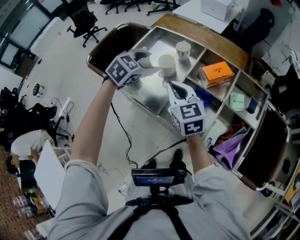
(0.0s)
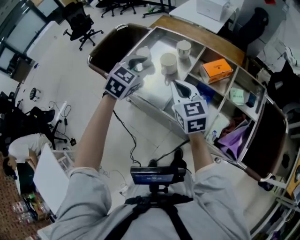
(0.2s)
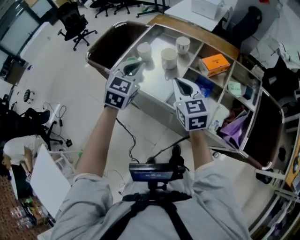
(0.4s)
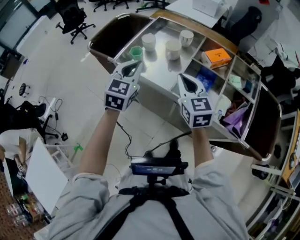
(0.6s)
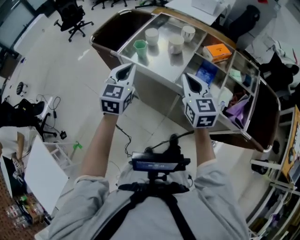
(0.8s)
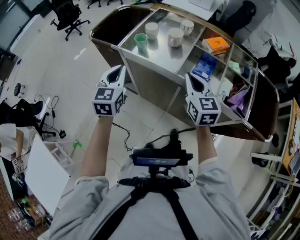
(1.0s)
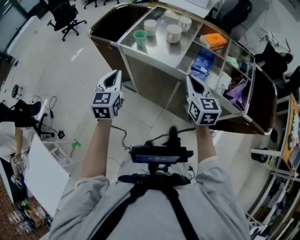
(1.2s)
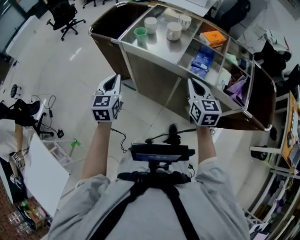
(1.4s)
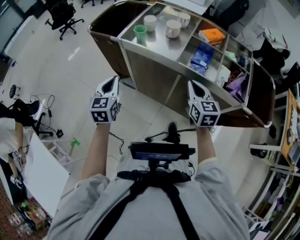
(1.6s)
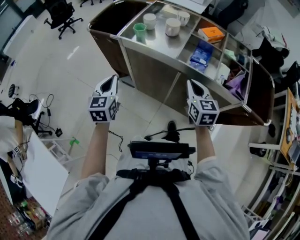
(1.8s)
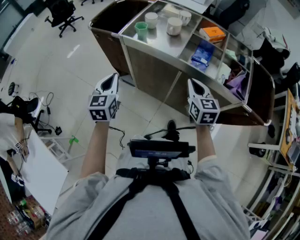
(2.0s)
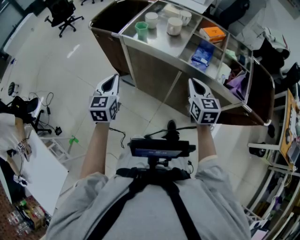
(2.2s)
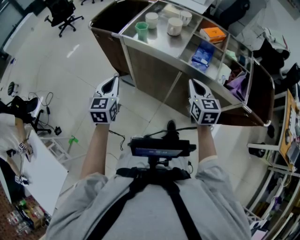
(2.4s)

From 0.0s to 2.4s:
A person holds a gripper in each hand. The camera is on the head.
From 0.0s to 1.2s: The left gripper goes some 35 cm backward and to the left, swivels some 50 degrees, and closes its fingers. The right gripper moves backward, roughly 20 cm.
From 1.2s to 2.4s: The right gripper moves approximately 5 cm. Meanwhile the left gripper travels backward and downward by approximately 10 cm.

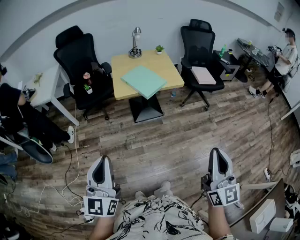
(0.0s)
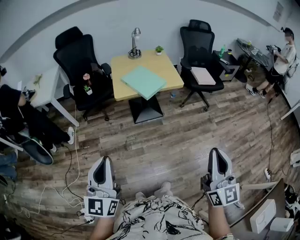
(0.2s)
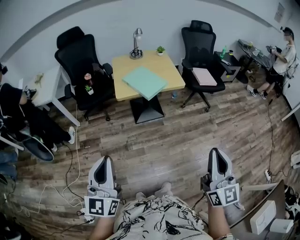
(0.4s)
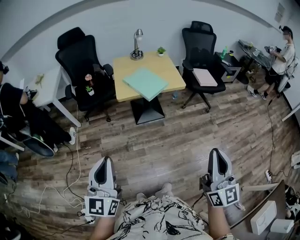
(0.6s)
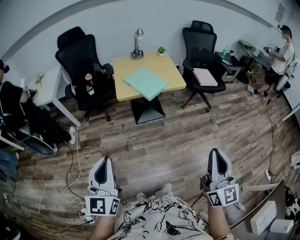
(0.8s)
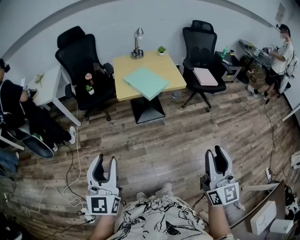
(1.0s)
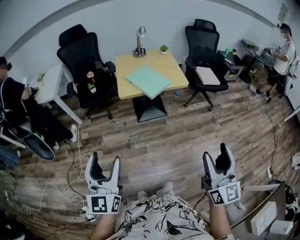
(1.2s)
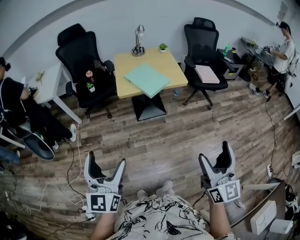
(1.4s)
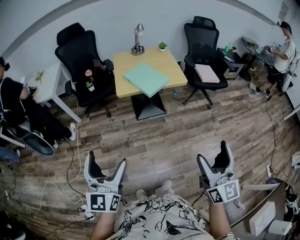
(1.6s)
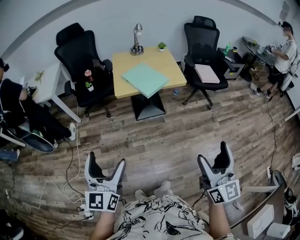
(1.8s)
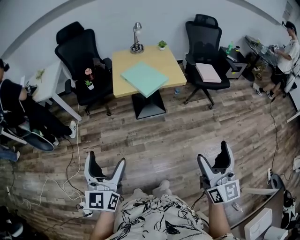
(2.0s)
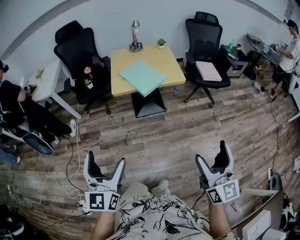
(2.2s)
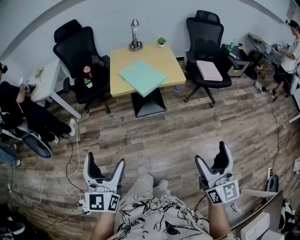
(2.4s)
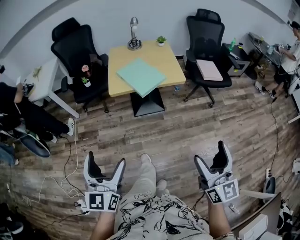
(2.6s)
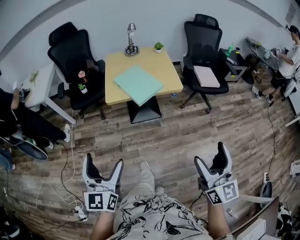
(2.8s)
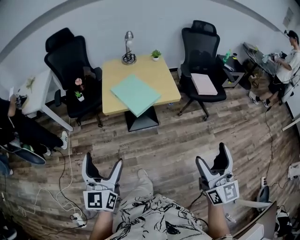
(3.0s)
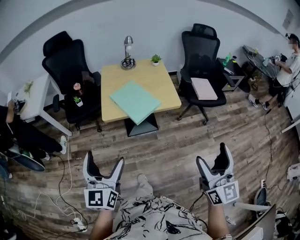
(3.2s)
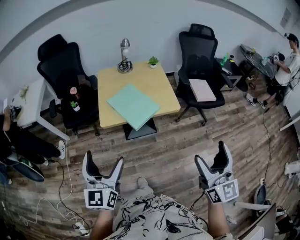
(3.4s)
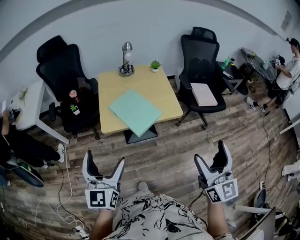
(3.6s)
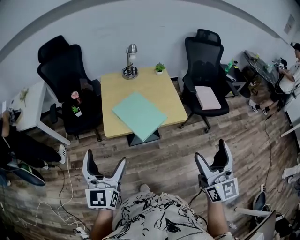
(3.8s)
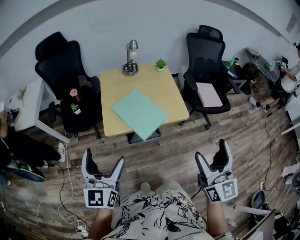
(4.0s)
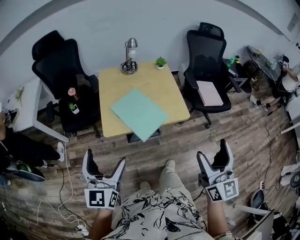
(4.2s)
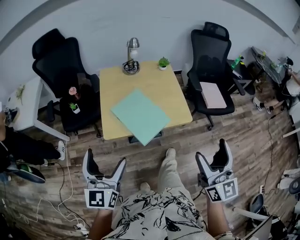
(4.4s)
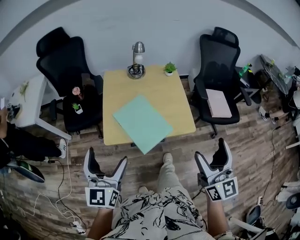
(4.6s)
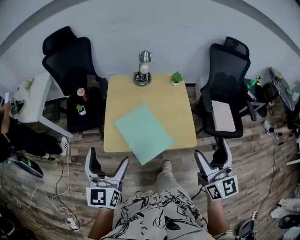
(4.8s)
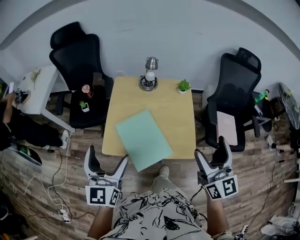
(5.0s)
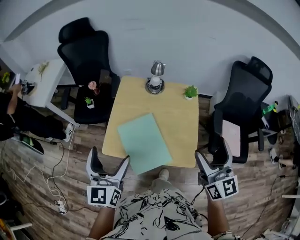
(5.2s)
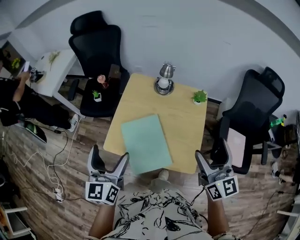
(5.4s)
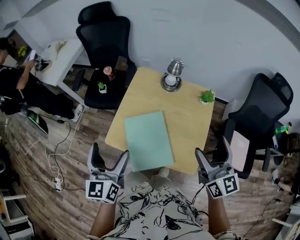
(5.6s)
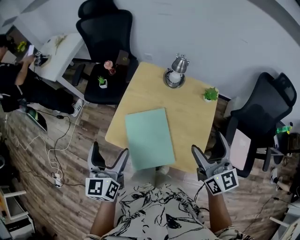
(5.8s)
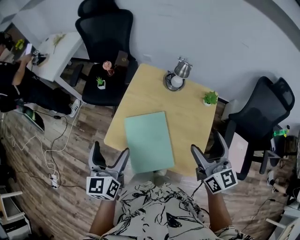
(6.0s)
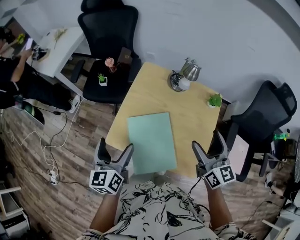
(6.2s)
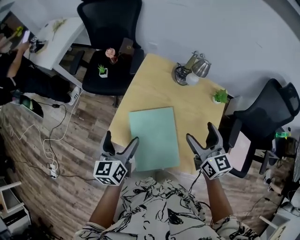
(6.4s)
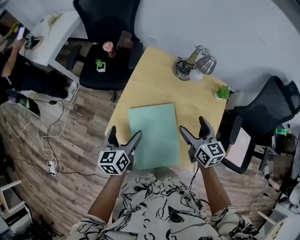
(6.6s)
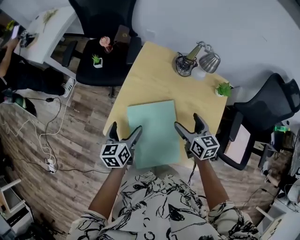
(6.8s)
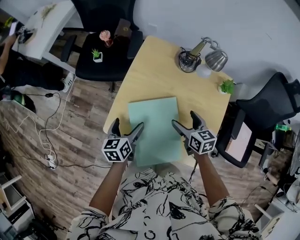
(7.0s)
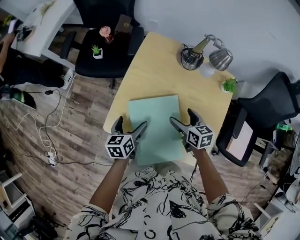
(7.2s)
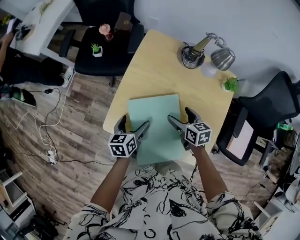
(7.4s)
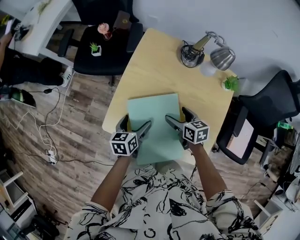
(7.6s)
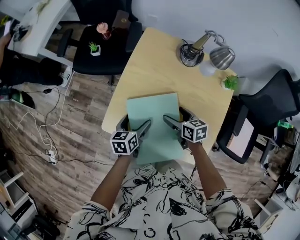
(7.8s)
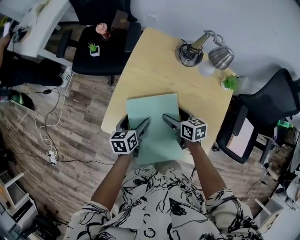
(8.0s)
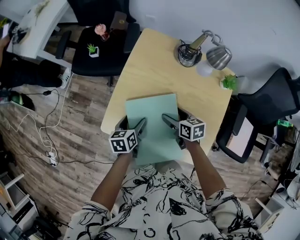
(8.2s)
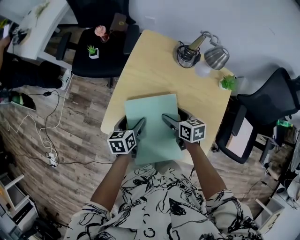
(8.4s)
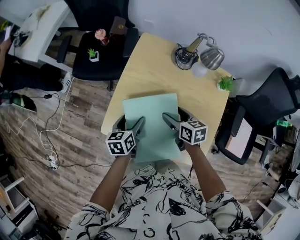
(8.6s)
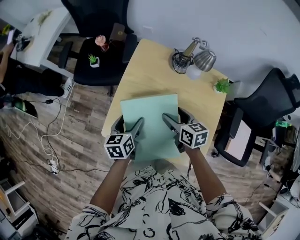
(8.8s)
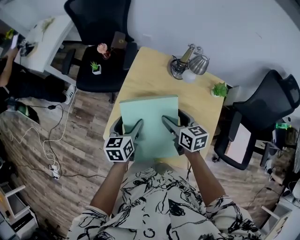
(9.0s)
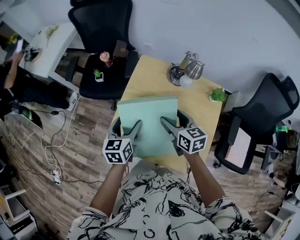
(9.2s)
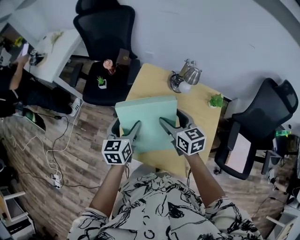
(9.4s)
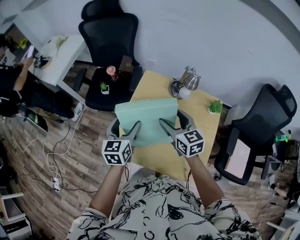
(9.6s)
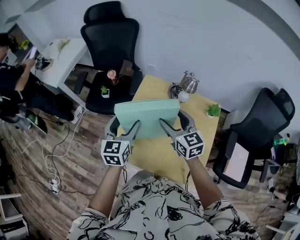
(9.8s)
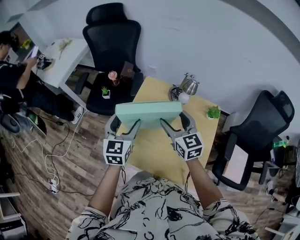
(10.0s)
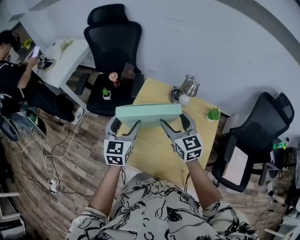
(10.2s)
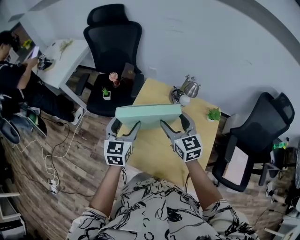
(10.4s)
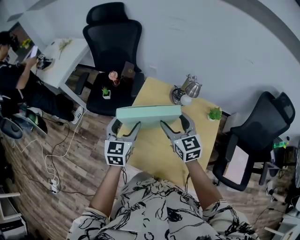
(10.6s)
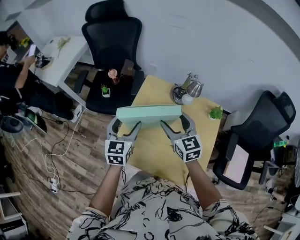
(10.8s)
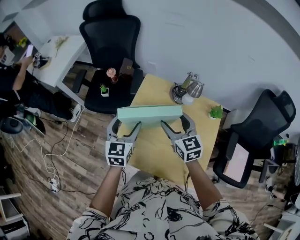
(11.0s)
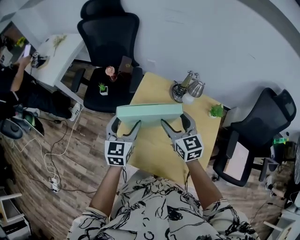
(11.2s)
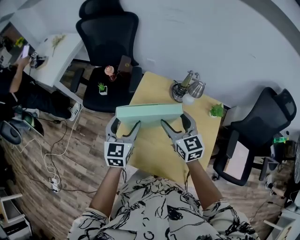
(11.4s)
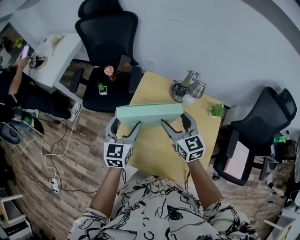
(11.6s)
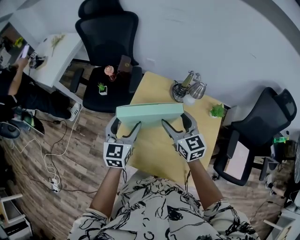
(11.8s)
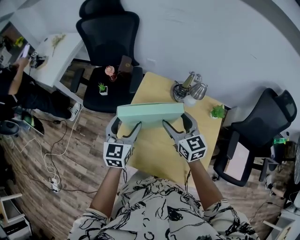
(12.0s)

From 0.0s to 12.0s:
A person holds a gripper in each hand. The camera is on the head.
From 0.0s to 1.6s: The right gripper opens; the left gripper opens its fingers.
From 1.6s to 3.0s: The grippers both shift forward and to the right by about 20 cm.
From 3.0s to 4.4s: The grippers both shift forward by roughly 25 cm.
From 4.4s to 6.0s: The right gripper ends up approximately 40 cm from where it was, and changes its angle by about 40 degrees. The left gripper moves roughly 20 cm, and swivels roughly 40 degrees.
From 6.0s to 7.6s: Both grippers move downward, approximately 30 cm. The right gripper points its fingers approximately 40 degrees further downward, while the left gripper rotates approximately 40 degrees.
From 7.6s to 9.0s: The two grippers go roughly 10 cm upward.
From 9.0s to 10.4s: The grippers both shift upward by approximately 15 cm. The left gripper swivels about 30 degrees, while the right gripper rotates roughly 30 degrees.
From 10.4s to 12.0s: There are only small adjustments of the grippers.

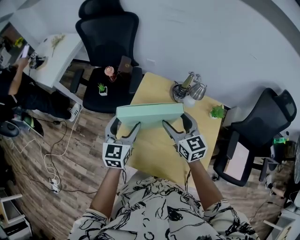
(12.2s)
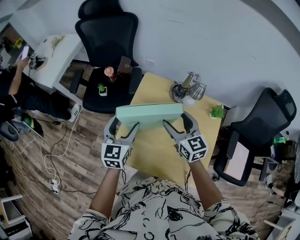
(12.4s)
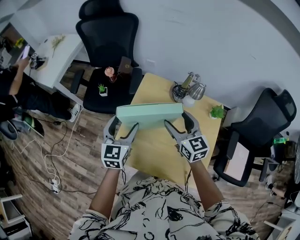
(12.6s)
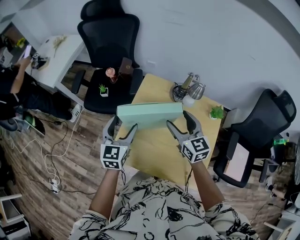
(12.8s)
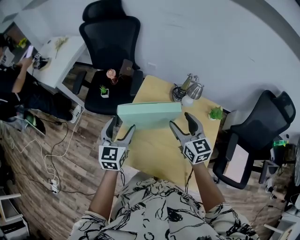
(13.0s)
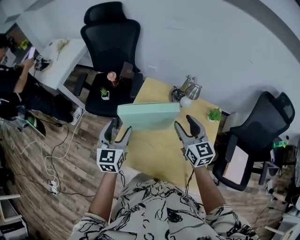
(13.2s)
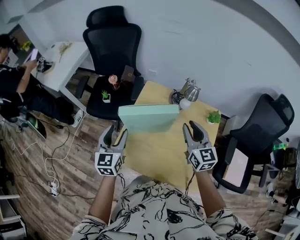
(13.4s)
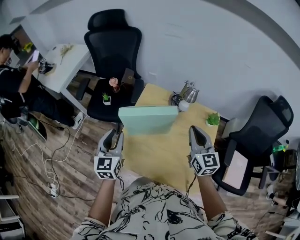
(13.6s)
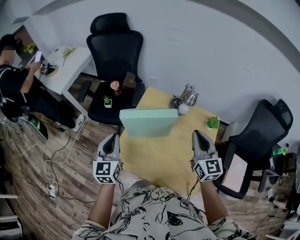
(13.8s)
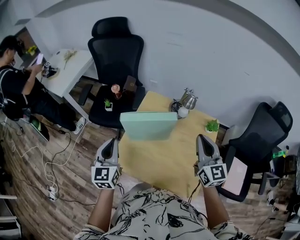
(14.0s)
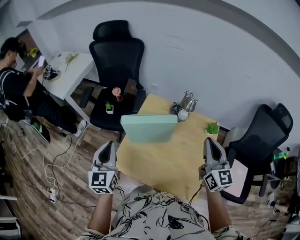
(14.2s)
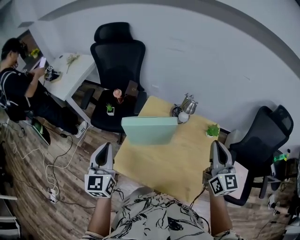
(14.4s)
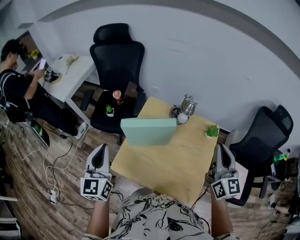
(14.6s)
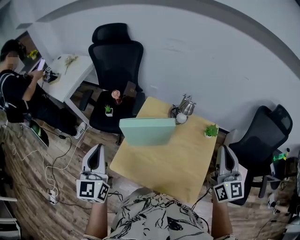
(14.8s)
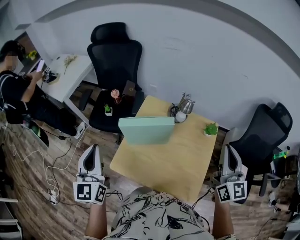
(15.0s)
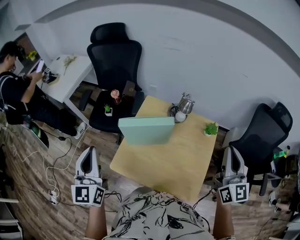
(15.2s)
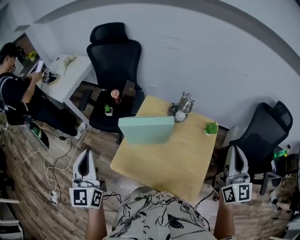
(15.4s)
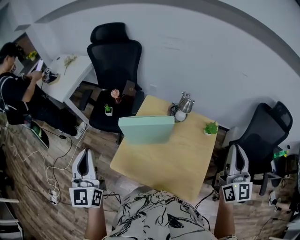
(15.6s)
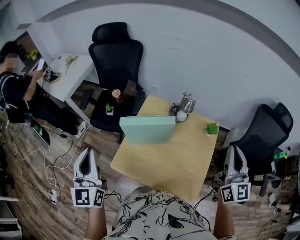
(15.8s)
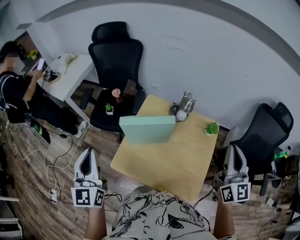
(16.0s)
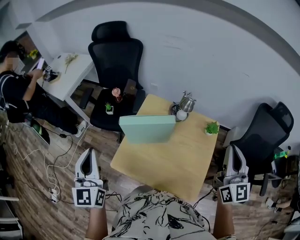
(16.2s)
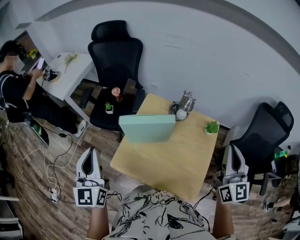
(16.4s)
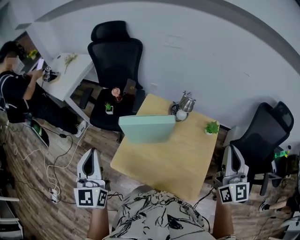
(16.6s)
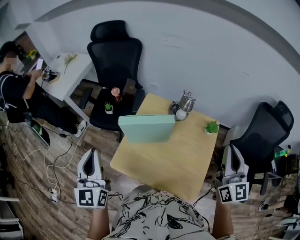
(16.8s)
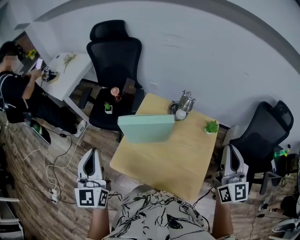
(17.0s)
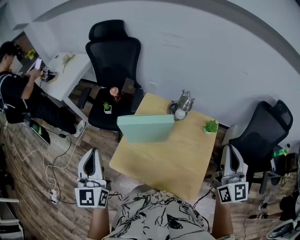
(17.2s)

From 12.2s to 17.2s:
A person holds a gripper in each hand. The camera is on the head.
From 12.2s to 13.8s: The right gripper shifts roughly 15 cm to the right, backward and upward, and closes up; the left gripper moves backward and to the left, approximately 10 cm, and closes up.
From 13.8s to 15.6s: The right gripper goes some 20 cm upward, to the right and backward. Meanwhile the left gripper goes some 15 cm upward and backward.
From 15.6s to 17.2s: The grippers move only a little.

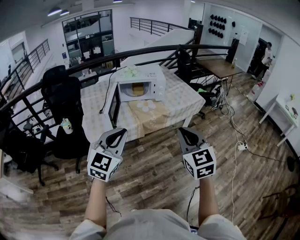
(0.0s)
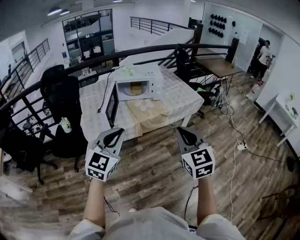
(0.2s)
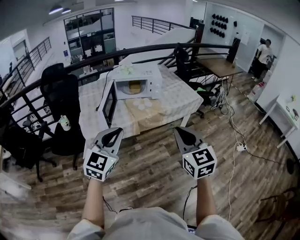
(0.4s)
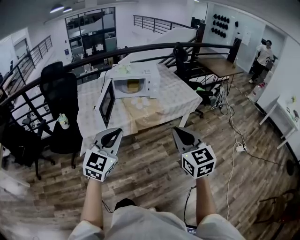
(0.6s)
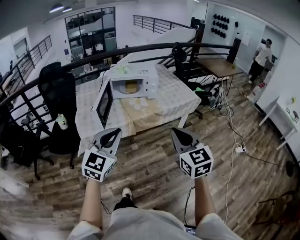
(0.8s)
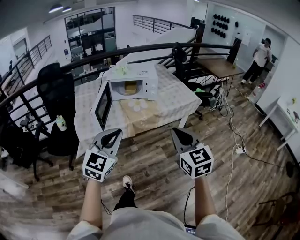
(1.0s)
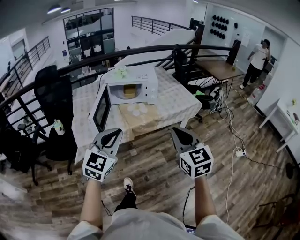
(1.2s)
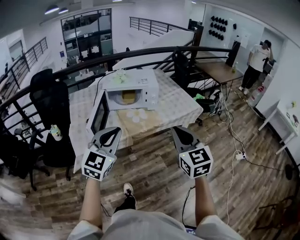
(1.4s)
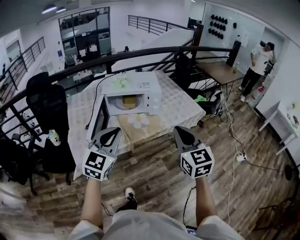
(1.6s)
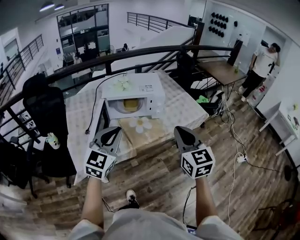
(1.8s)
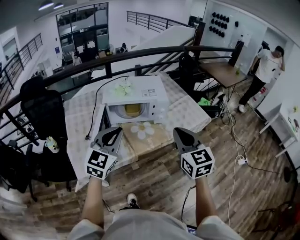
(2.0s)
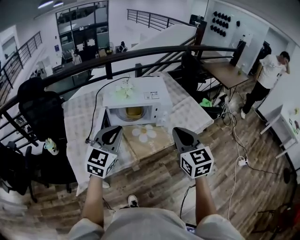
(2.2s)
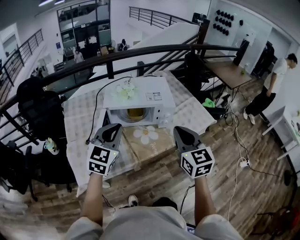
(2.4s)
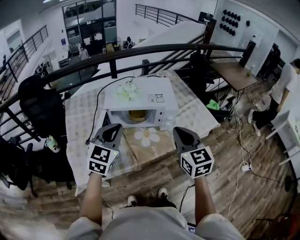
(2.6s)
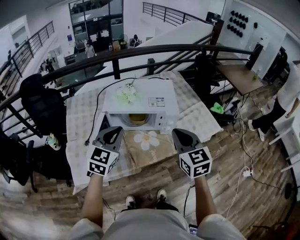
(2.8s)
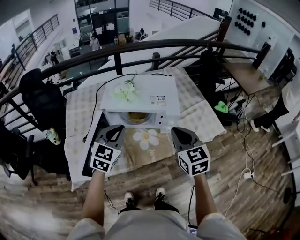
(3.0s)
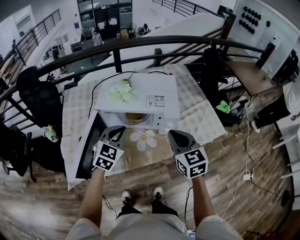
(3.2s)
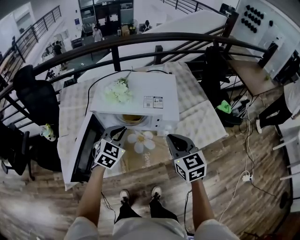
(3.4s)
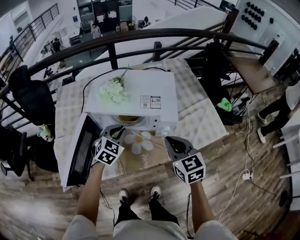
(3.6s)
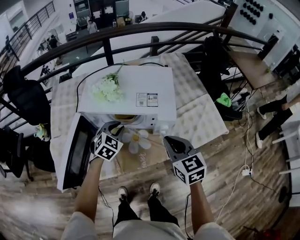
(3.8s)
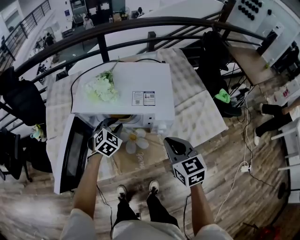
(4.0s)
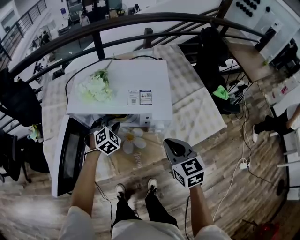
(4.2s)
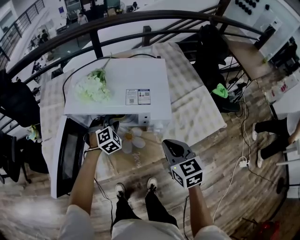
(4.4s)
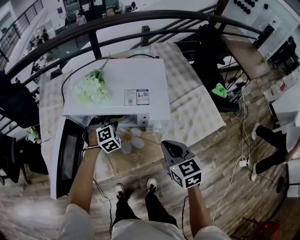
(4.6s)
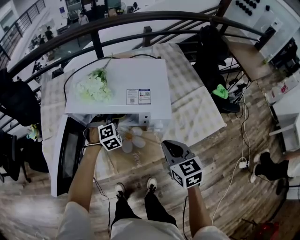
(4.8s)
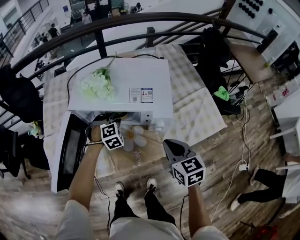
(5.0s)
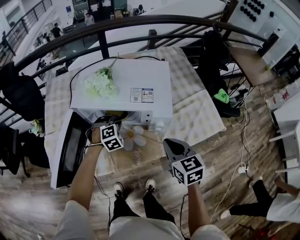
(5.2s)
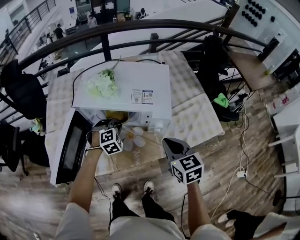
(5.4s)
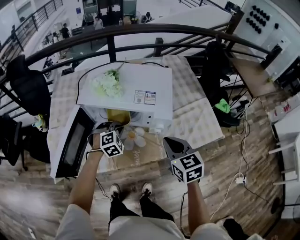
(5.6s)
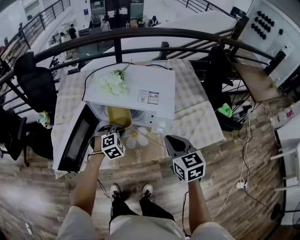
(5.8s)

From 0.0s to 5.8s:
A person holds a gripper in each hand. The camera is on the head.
From 0.0s to 1.4s: The grippers both shift forward by roughly 15 cm.
From 1.4s to 2.8s: The grippers both shift forward by about 35 cm.
From 2.8s to 4.4s: The left gripper is displaced downward and forward by approximately 35 cm, tilts its fingers about 30 degrees downward, and opens its fingers. The right gripper goes approximately 20 cm downward, forward and to the right.
From 4.4s to 5.8s: The left gripper moves backward, some 10 cm, and closes up. The right gripper moves upward, approximately 5 cm.
